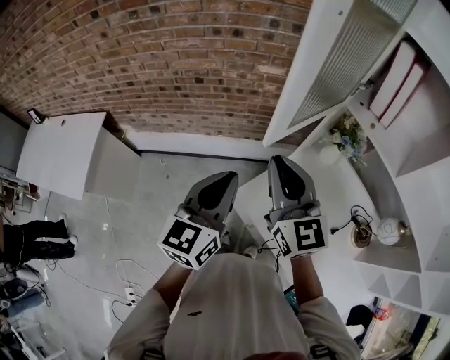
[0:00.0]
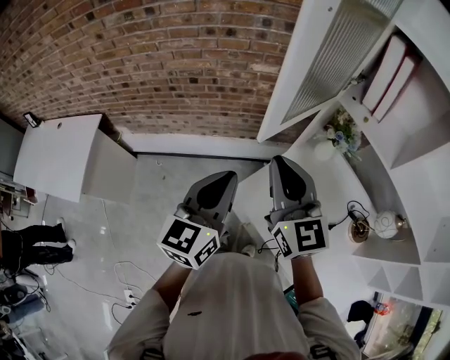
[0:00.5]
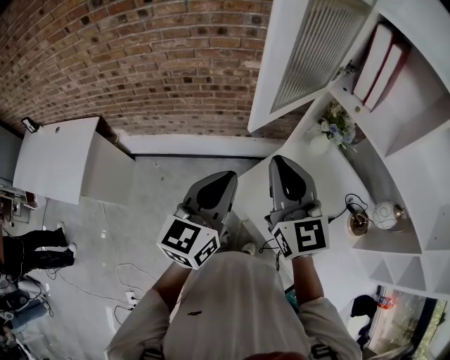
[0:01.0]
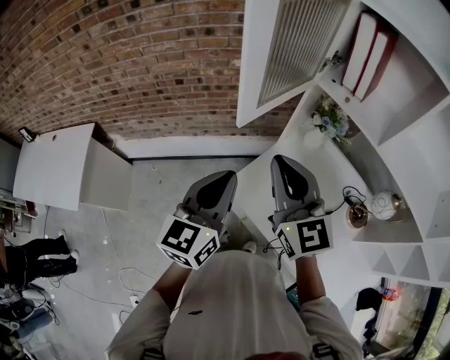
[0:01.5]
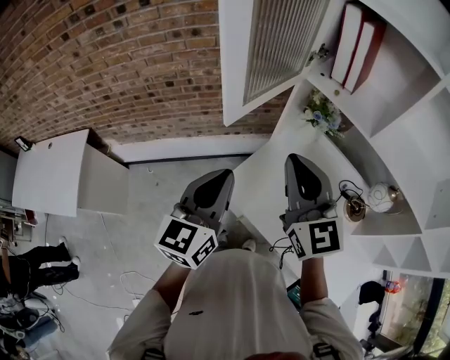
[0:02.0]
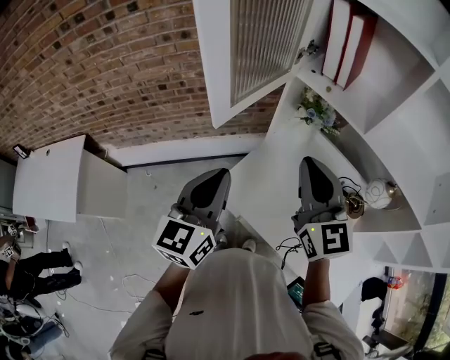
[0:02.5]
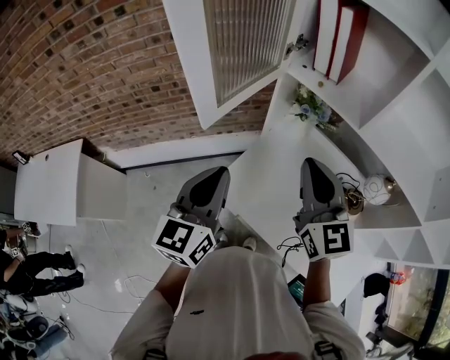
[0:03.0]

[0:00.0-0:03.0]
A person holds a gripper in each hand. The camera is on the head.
0:00.0 to 0:01.5: The right gripper heads backward and to the right, covering about 5 cm; the left gripper shifts by approximately 5 cm.
0:01.5 to 0:03.0: The right gripper is displaced to the right by some 15 cm, while the left gripper goes roughly 5 cm to the right.

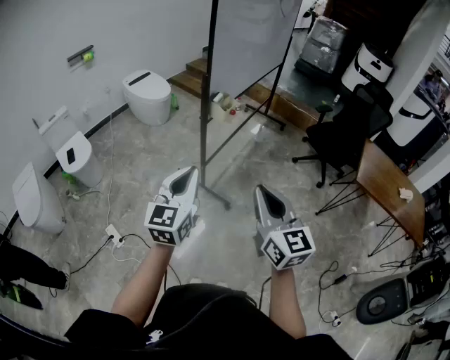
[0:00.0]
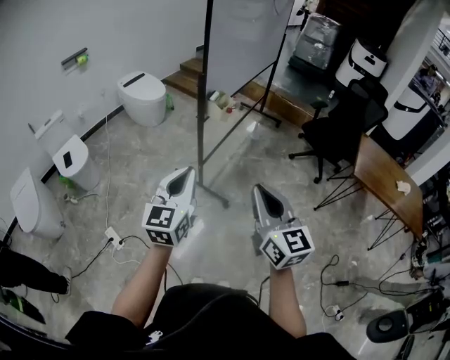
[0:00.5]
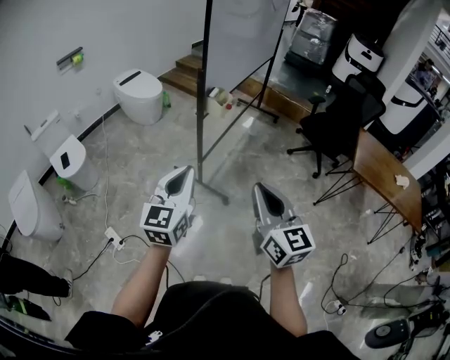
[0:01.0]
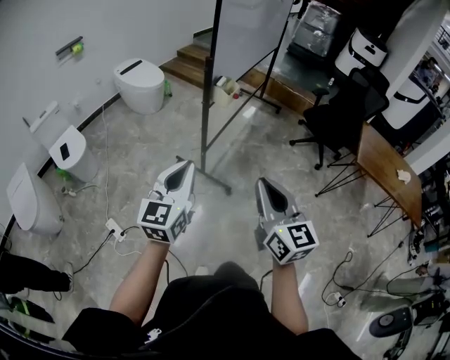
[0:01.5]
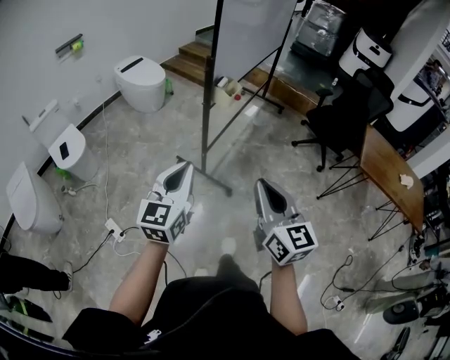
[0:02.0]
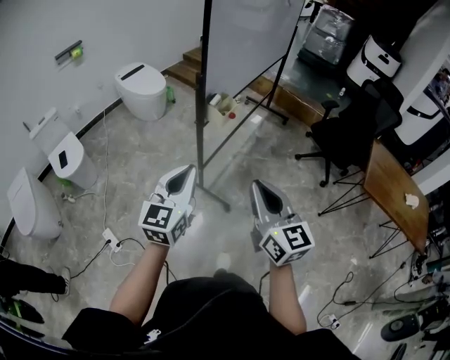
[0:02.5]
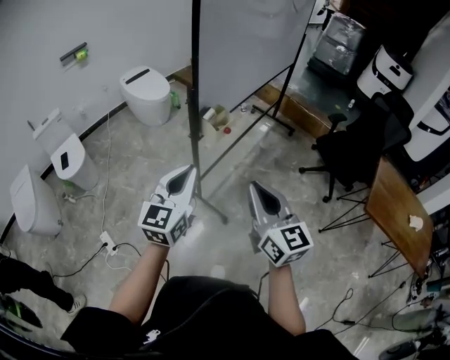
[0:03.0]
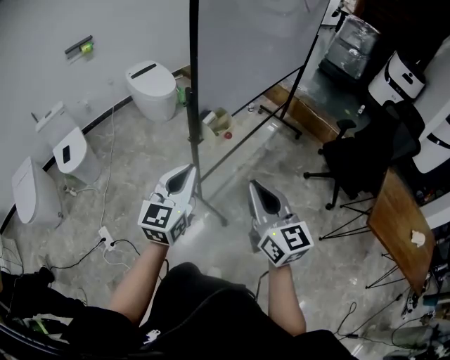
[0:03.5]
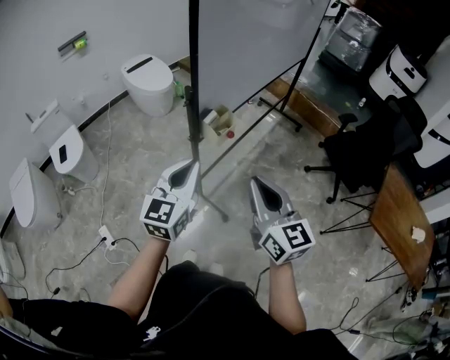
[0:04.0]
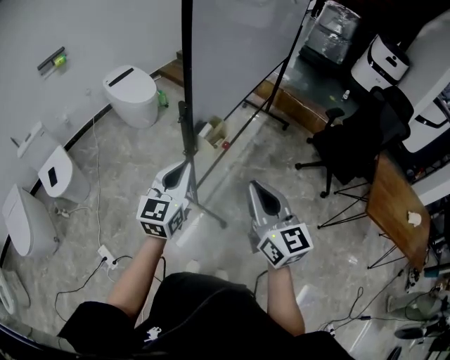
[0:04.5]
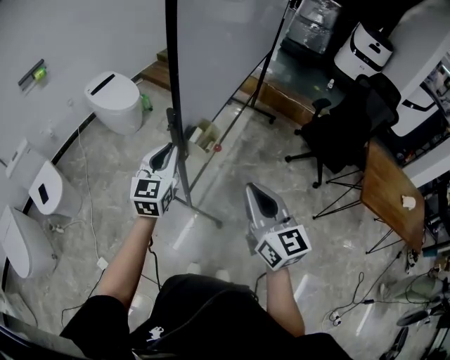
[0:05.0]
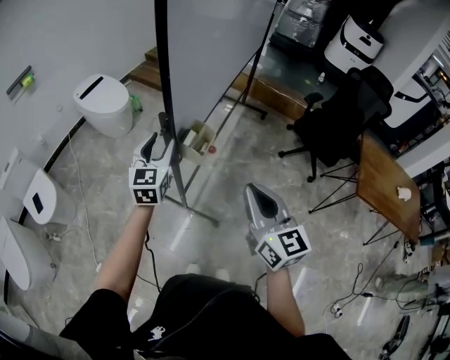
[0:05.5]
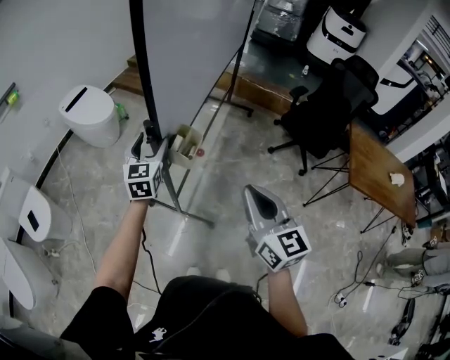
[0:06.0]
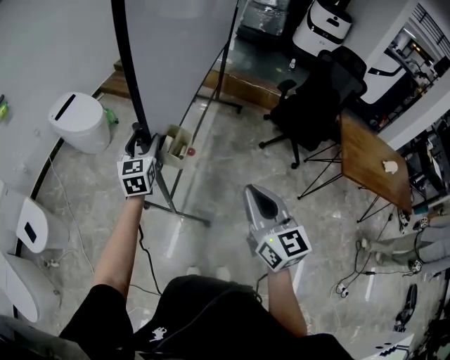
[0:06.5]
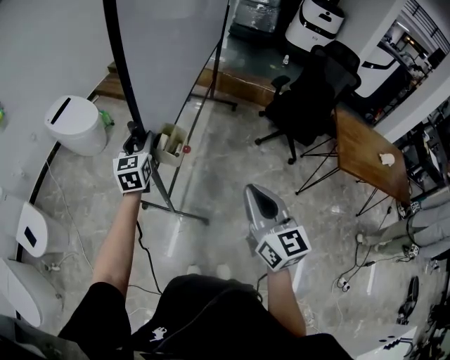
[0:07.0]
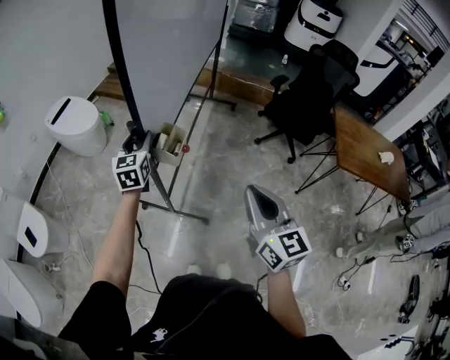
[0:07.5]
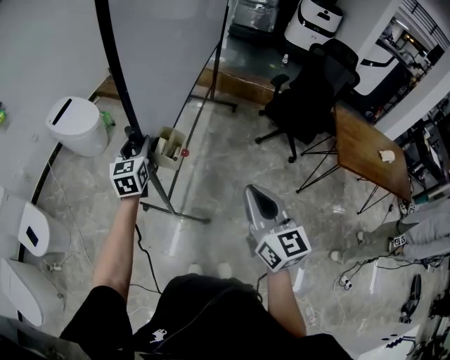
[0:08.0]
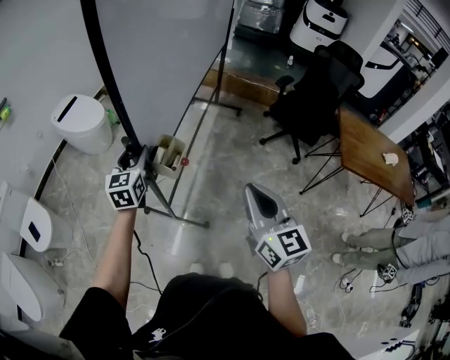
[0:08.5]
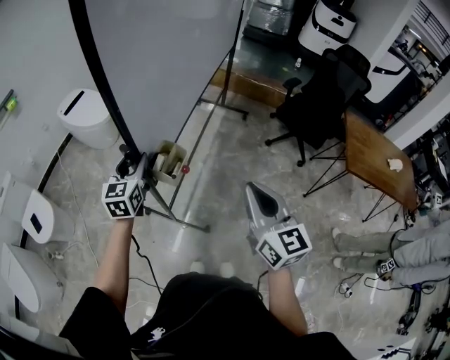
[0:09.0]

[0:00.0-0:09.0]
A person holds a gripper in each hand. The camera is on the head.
0:00.0 to 0:02.0: The left gripper shifts approximately 5 cm to the left. Meanwhile the right gripper changes place by some 5 cm.
0:02.0 to 0:04.5: Both grippers move forward, approximately 30 cm.
0:04.5 to 0:07.0: The left gripper goes roughly 20 cm forward, and opens. Meanwhile the right gripper turns by about 20 degrees.
0:07.0 to 0:09.0: The left gripper goes approximately 10 cm backward.

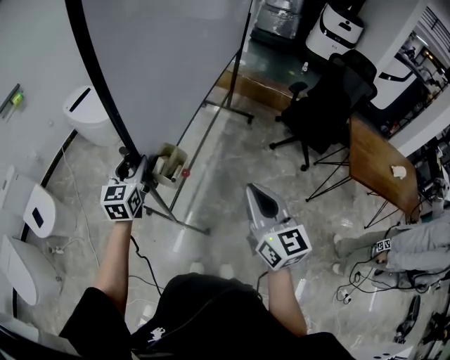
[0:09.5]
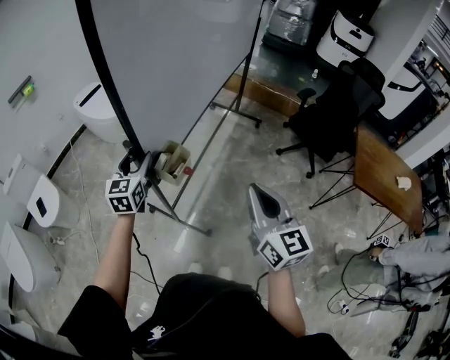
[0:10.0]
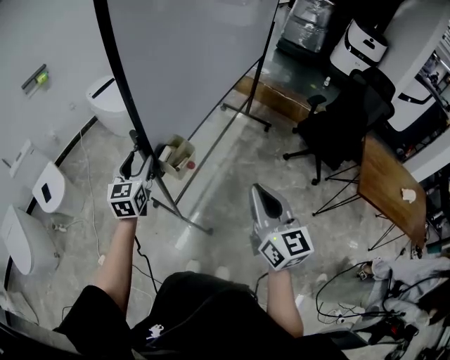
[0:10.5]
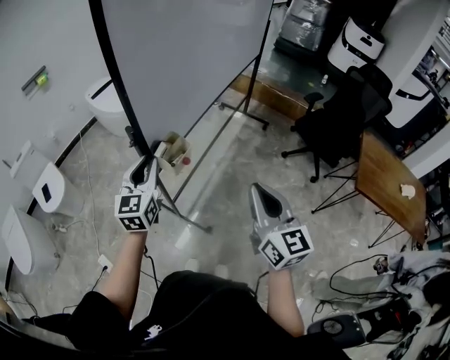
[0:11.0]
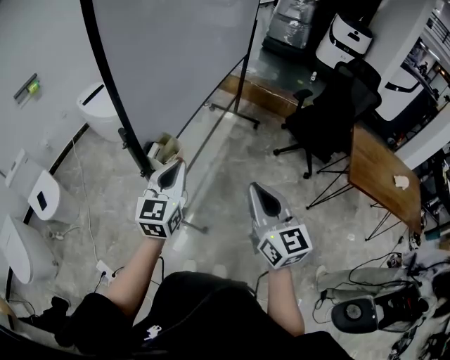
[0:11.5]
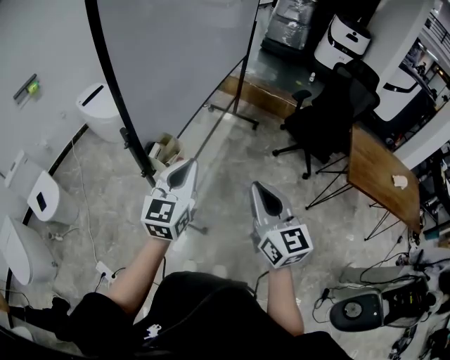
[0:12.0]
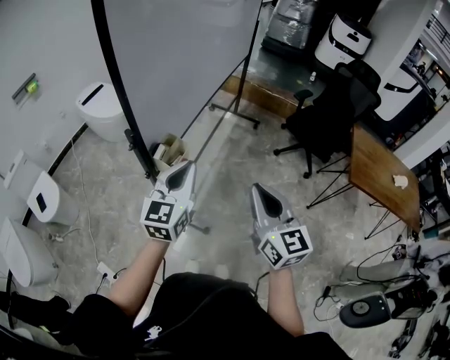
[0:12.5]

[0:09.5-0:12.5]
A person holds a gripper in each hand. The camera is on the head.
0:09.5 to 0:11.0: The left gripper shifts approximately 10 cm backward. The right gripper shifts by about 5 cm.
0:11.0 to 0:12.5: The left gripper travels to the right by roughly 10 cm.

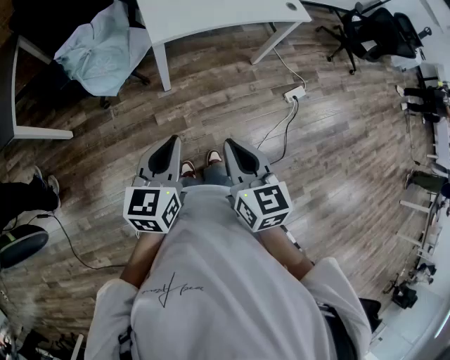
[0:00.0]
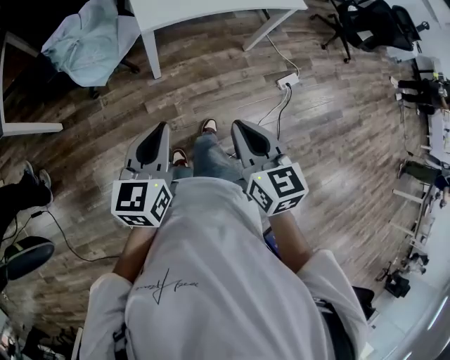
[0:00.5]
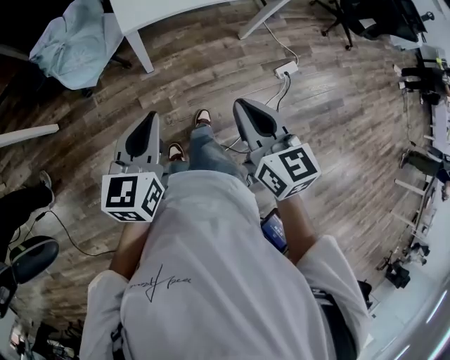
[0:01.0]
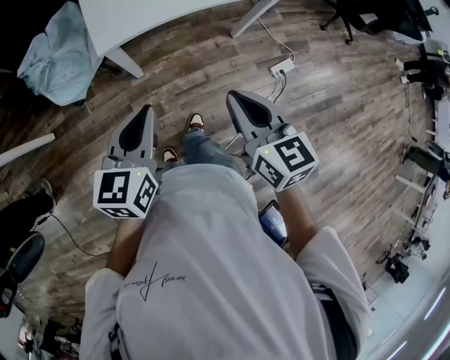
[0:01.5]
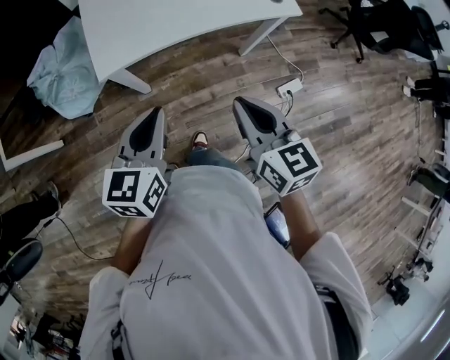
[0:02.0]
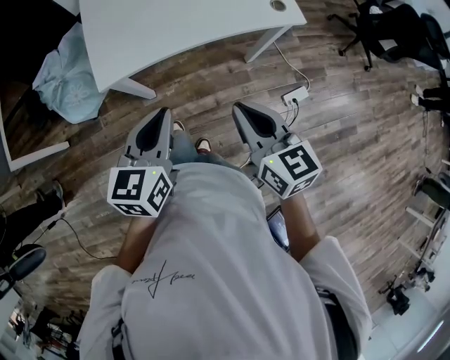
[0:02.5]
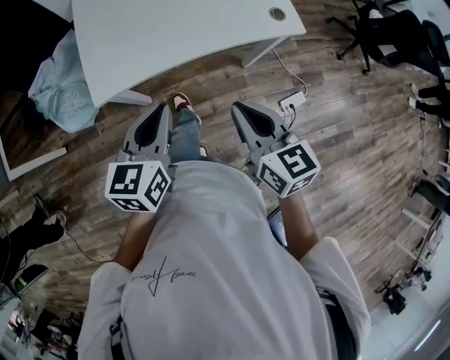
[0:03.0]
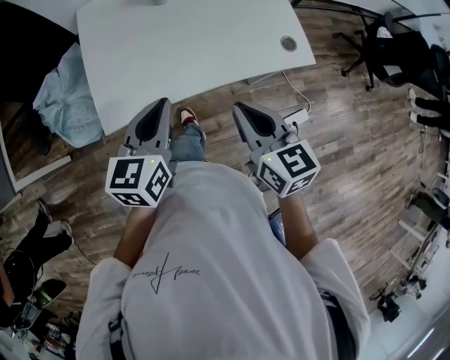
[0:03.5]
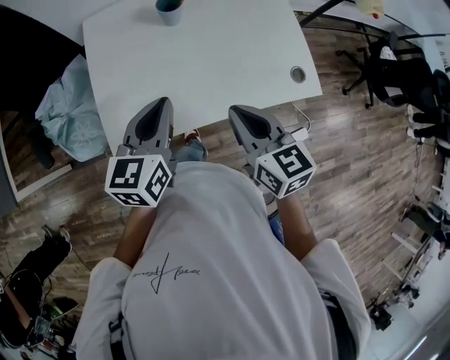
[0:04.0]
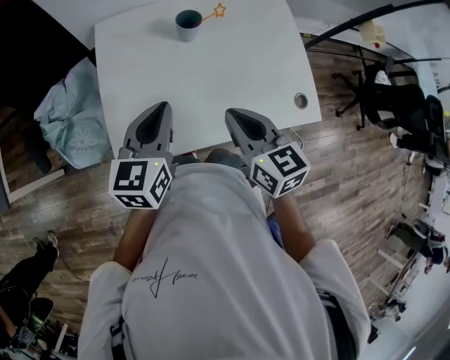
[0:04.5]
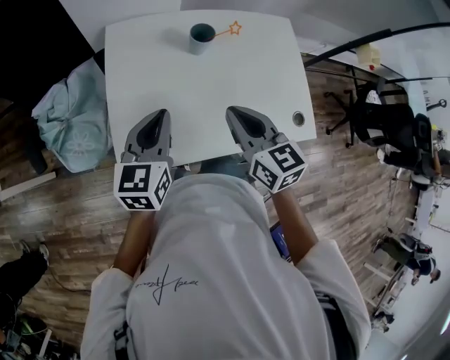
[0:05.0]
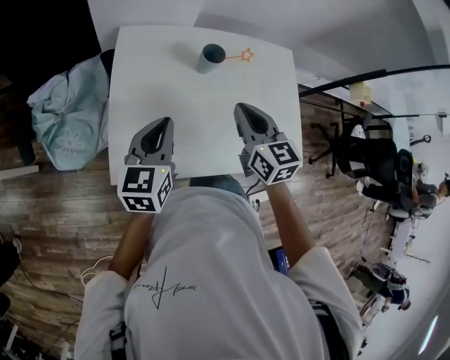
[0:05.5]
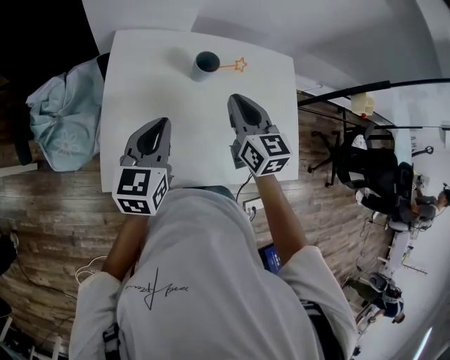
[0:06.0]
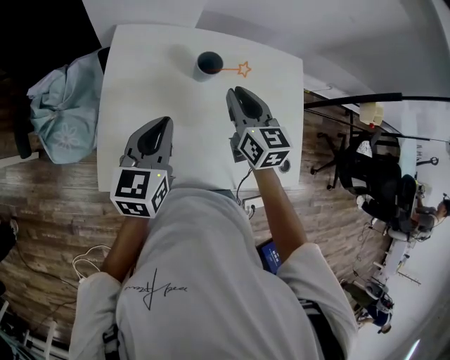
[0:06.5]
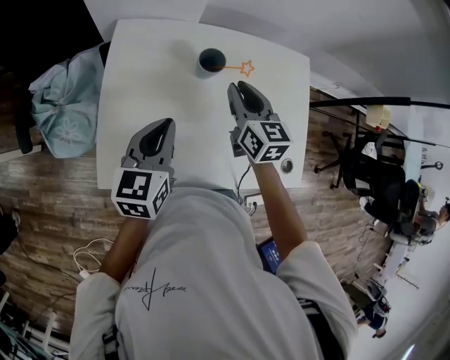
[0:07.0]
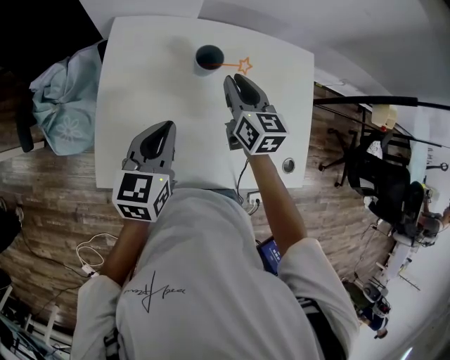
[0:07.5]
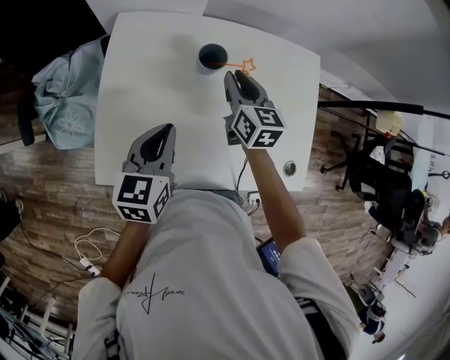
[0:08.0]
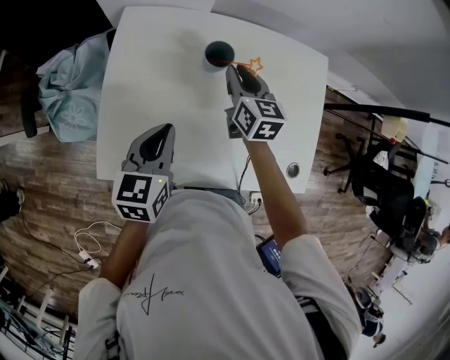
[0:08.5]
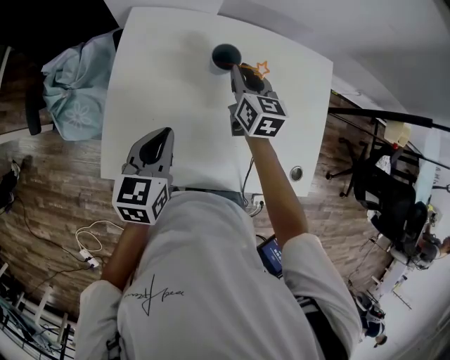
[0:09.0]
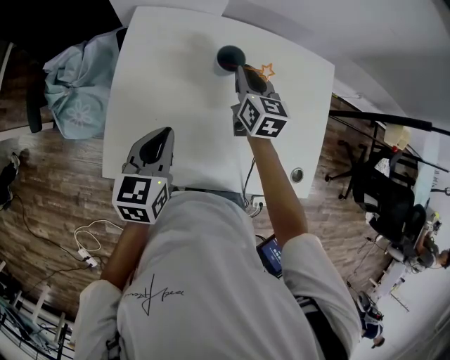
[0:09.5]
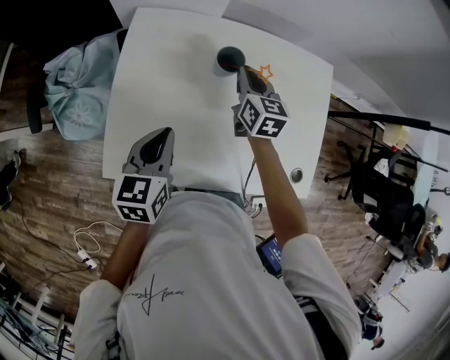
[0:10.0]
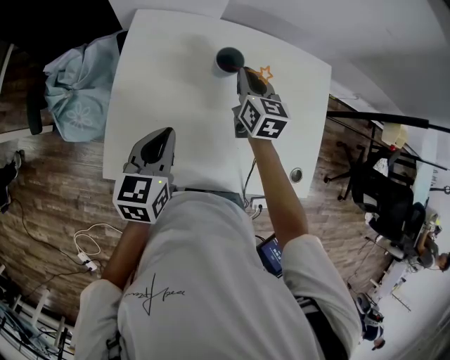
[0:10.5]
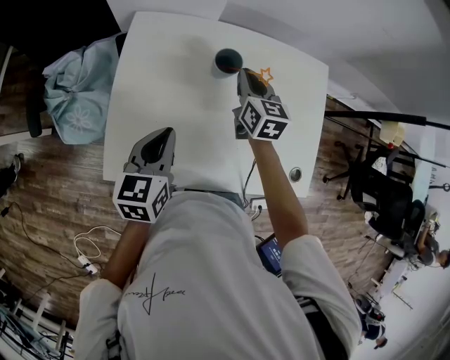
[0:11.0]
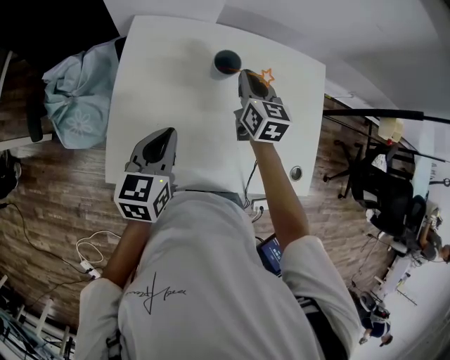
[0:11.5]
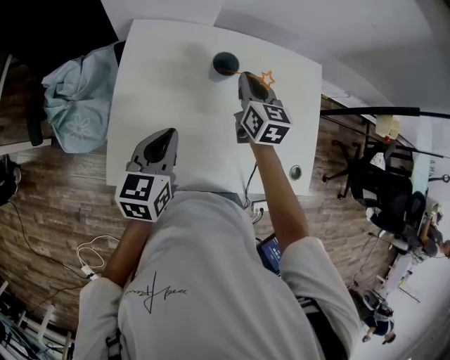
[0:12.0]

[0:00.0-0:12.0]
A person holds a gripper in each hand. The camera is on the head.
0:00.0 to 0:02.0: The two grippers go about 30 cm forward and to the right.
0:02.0 to 0:04.0: The grippers both shift forward by roughly 30 cm.
0:04.0 to 0:06.0: The left gripper travels forward by roughly 10 cm. The right gripper moves forward, about 20 cm.
0:06.0 to 0:08.0: The left gripper changes place by roughly 5 cm; the right gripper heads forward and downward, covering roughly 10 cm.
0:08.0 to 0:12.0: The grippers move only a little.
